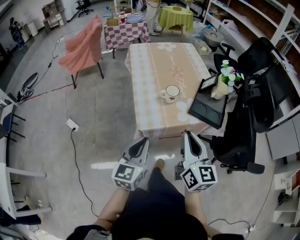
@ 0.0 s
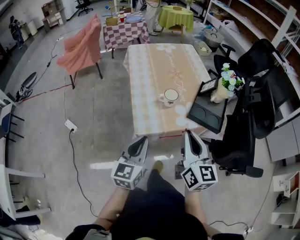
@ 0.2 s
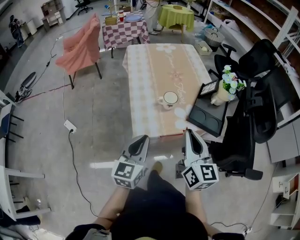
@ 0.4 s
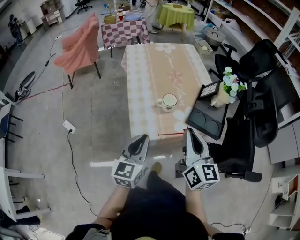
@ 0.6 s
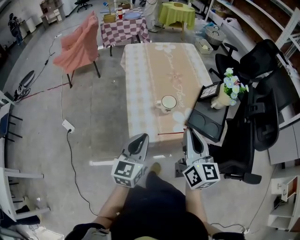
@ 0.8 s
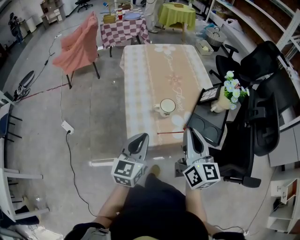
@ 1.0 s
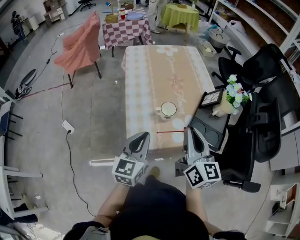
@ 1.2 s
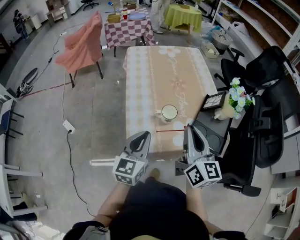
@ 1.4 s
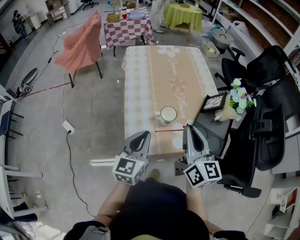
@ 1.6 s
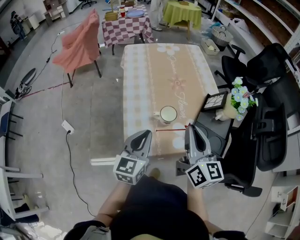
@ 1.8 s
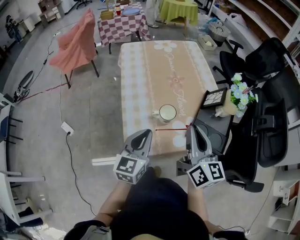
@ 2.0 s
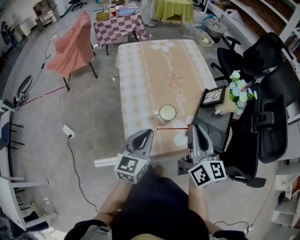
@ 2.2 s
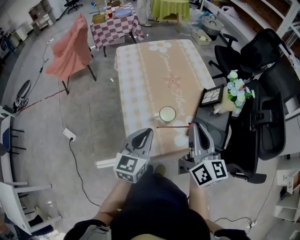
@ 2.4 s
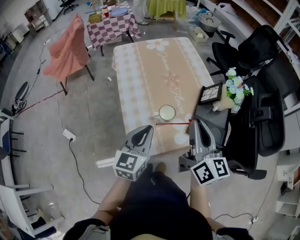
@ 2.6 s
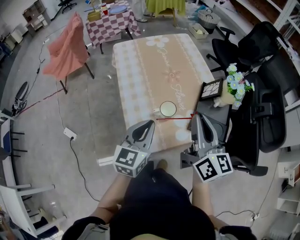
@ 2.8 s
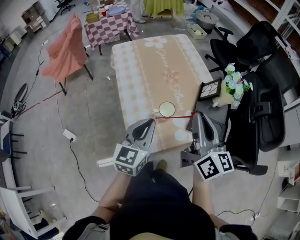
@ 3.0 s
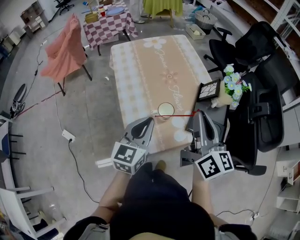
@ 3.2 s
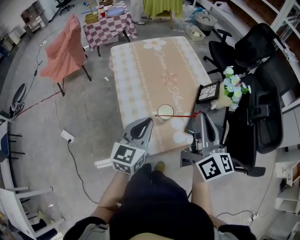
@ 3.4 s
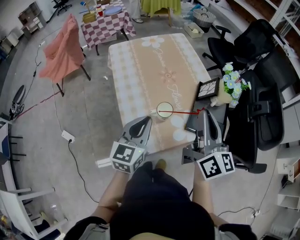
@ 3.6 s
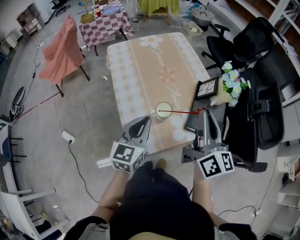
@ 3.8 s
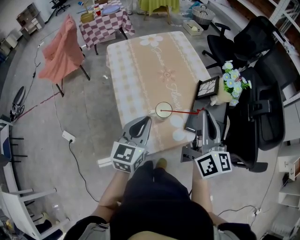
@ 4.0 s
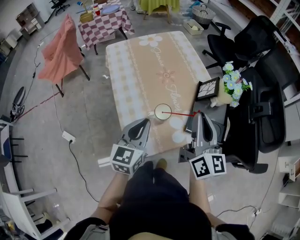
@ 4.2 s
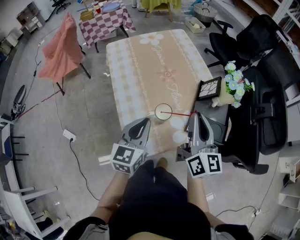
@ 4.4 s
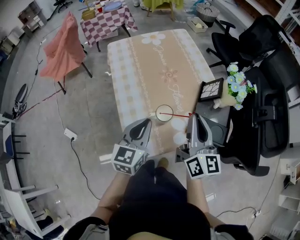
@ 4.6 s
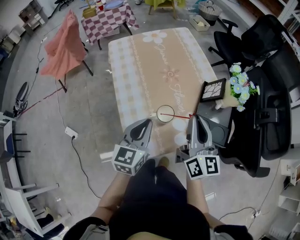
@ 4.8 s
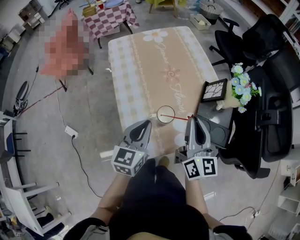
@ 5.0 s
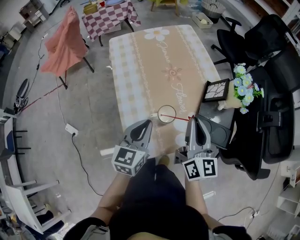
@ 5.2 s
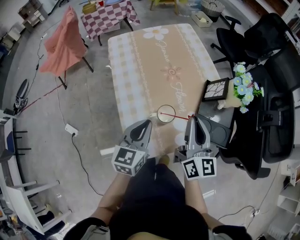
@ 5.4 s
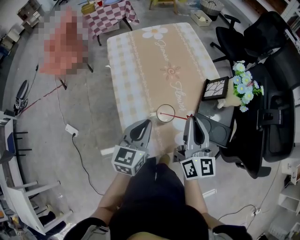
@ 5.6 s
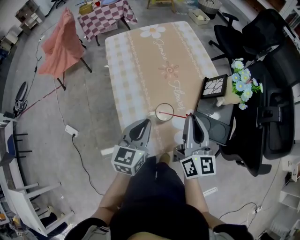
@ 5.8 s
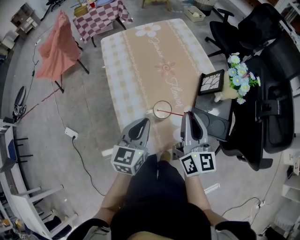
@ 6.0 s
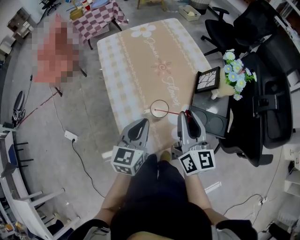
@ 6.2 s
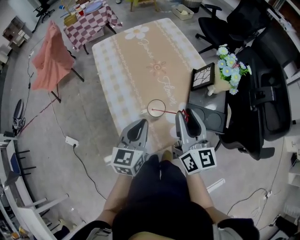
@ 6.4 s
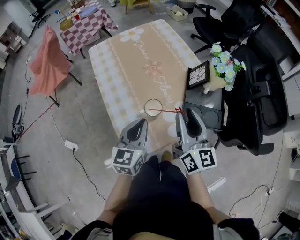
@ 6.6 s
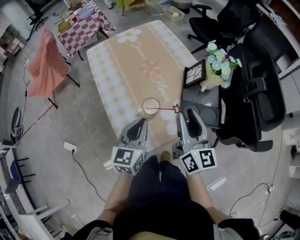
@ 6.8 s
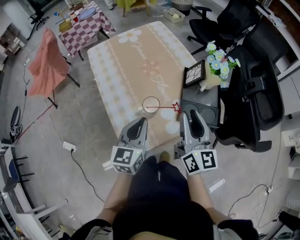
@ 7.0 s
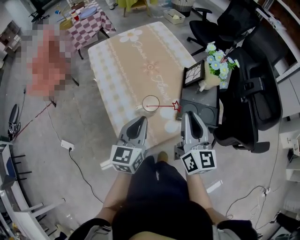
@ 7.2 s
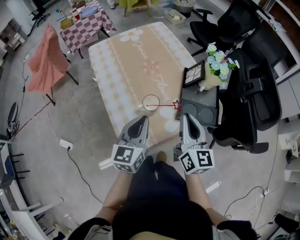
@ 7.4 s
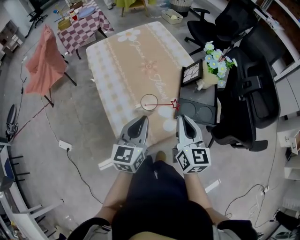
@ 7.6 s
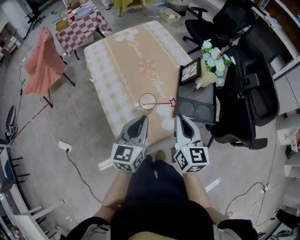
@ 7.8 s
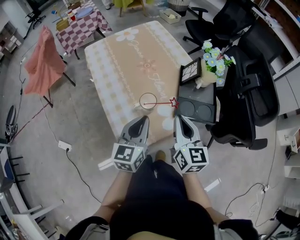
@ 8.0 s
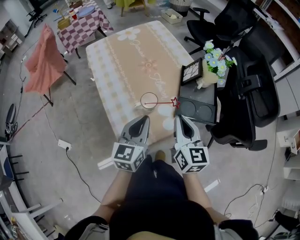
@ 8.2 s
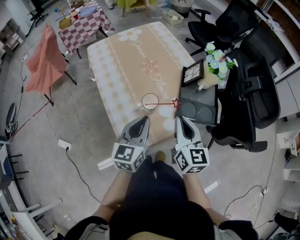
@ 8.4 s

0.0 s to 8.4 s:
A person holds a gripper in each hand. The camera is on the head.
0.0 to 1.4 s: Both grippers travel together forward, about 15 cm.
1.4 to 2.8 s: The right gripper moves about 5 cm, while the left gripper is displaced forward by some 5 cm.
2.8 to 4.2 s: There are only small adjustments of the grippers.
4.2 to 5.6 s: The right gripper shifts about 5 cm downward.
5.6 to 7.0 s: The right gripper moves about 5 cm, and opens.
7.0 to 8.4 s: The right gripper changes place by about 5 cm, and closes up.

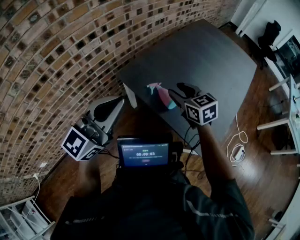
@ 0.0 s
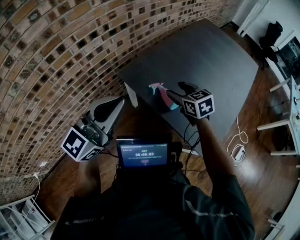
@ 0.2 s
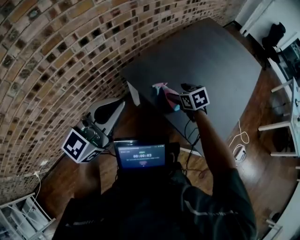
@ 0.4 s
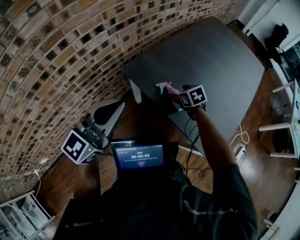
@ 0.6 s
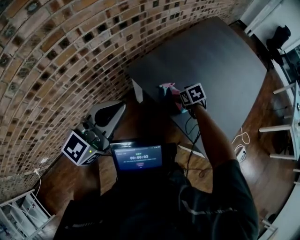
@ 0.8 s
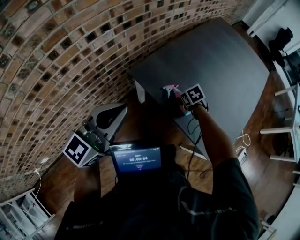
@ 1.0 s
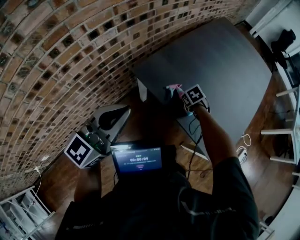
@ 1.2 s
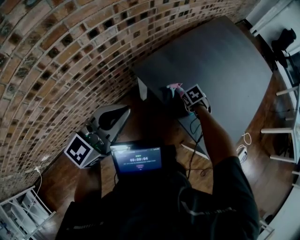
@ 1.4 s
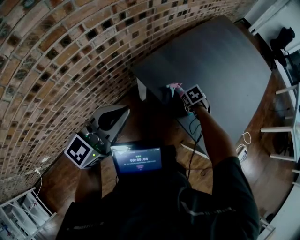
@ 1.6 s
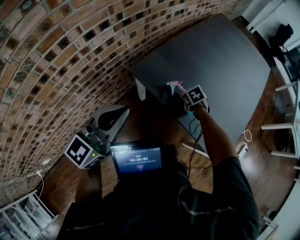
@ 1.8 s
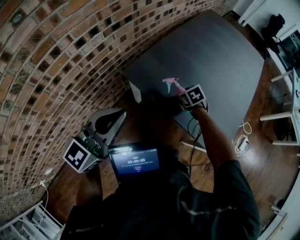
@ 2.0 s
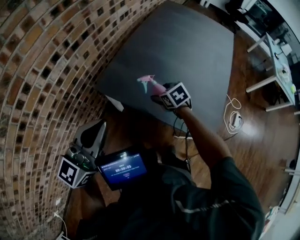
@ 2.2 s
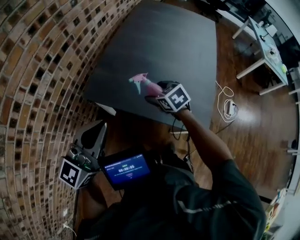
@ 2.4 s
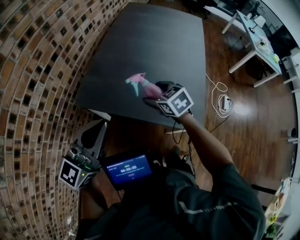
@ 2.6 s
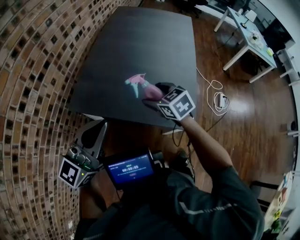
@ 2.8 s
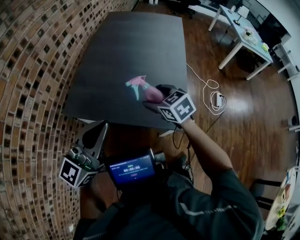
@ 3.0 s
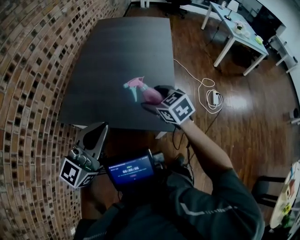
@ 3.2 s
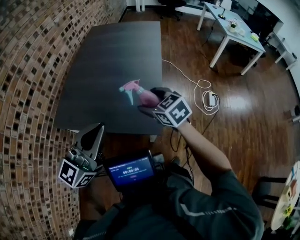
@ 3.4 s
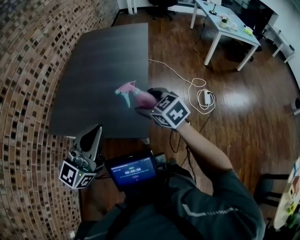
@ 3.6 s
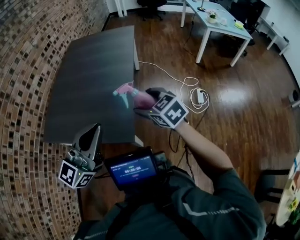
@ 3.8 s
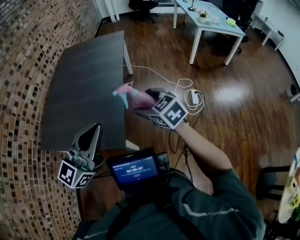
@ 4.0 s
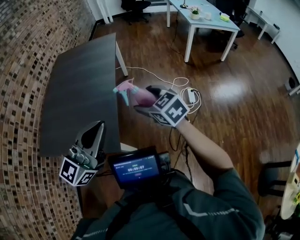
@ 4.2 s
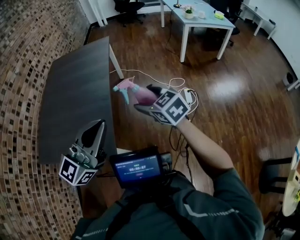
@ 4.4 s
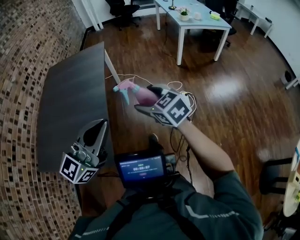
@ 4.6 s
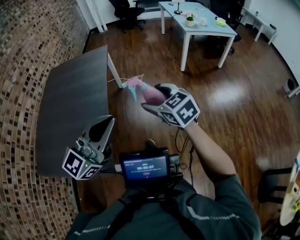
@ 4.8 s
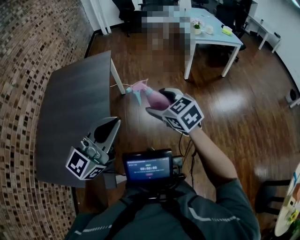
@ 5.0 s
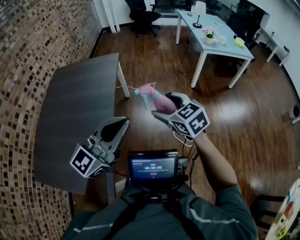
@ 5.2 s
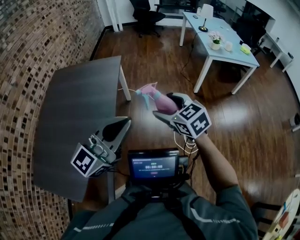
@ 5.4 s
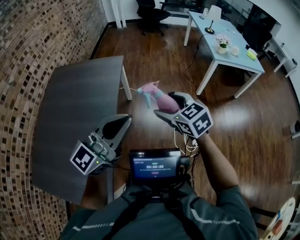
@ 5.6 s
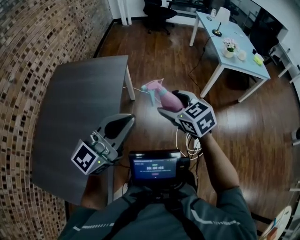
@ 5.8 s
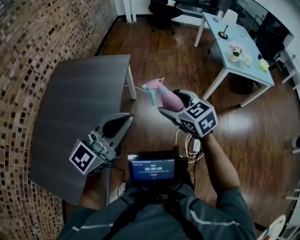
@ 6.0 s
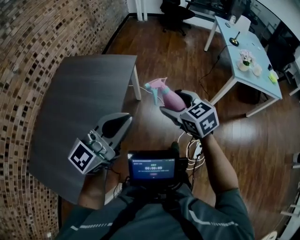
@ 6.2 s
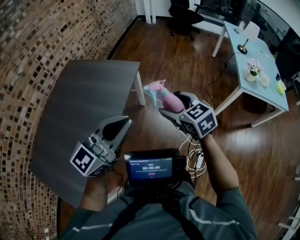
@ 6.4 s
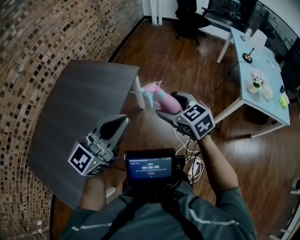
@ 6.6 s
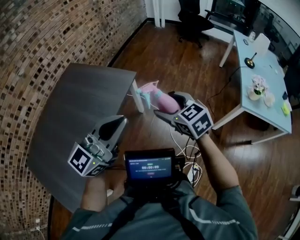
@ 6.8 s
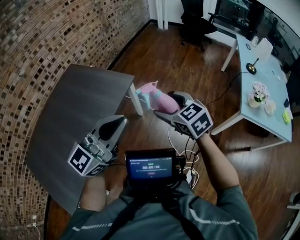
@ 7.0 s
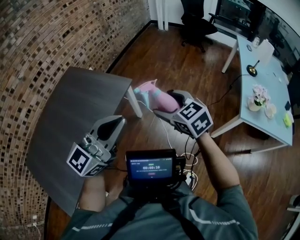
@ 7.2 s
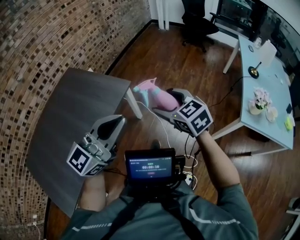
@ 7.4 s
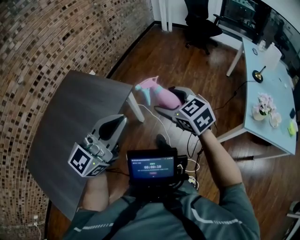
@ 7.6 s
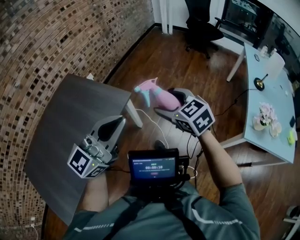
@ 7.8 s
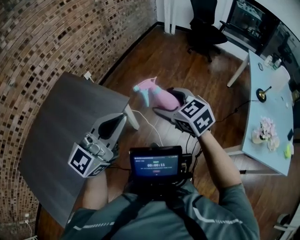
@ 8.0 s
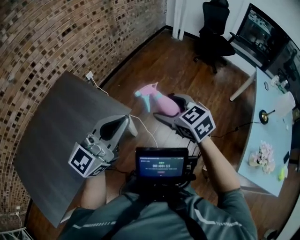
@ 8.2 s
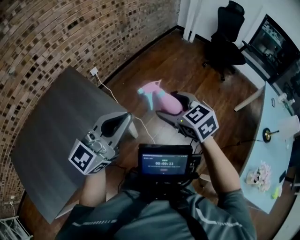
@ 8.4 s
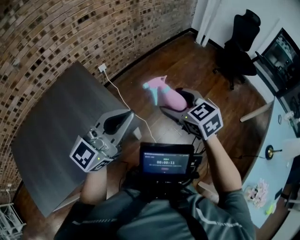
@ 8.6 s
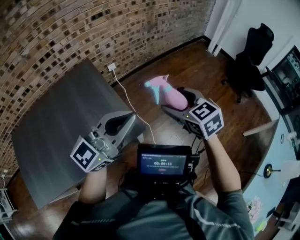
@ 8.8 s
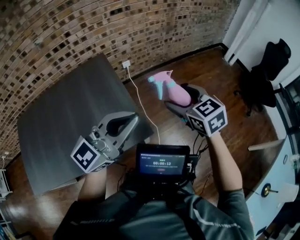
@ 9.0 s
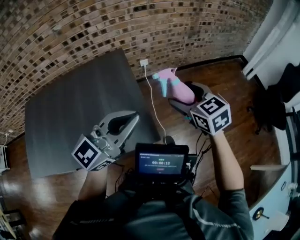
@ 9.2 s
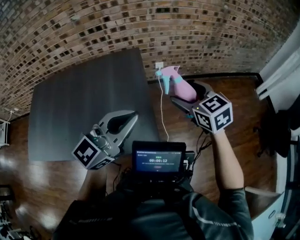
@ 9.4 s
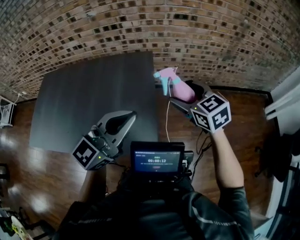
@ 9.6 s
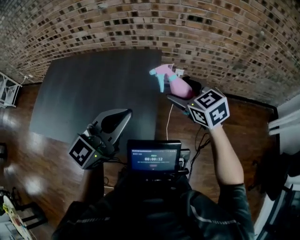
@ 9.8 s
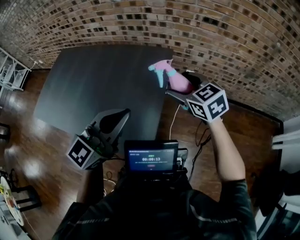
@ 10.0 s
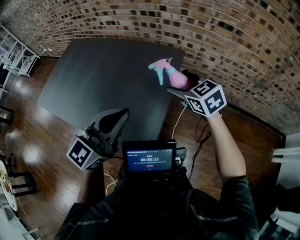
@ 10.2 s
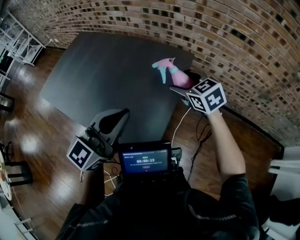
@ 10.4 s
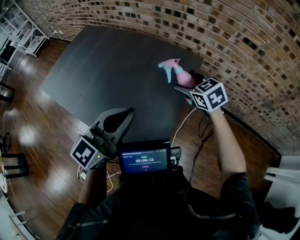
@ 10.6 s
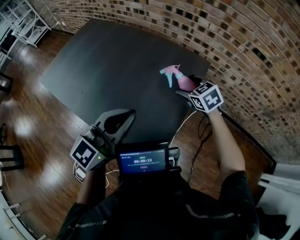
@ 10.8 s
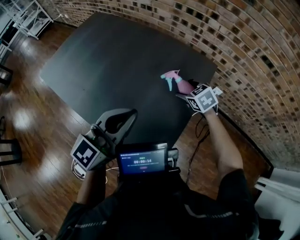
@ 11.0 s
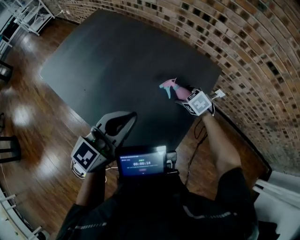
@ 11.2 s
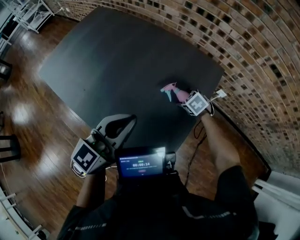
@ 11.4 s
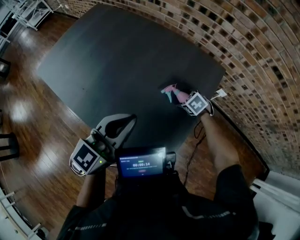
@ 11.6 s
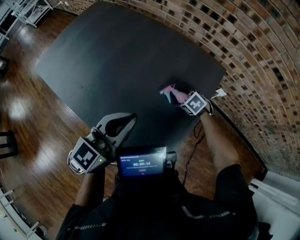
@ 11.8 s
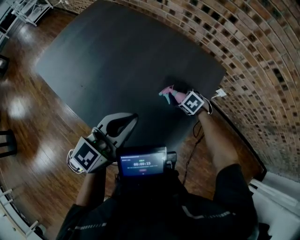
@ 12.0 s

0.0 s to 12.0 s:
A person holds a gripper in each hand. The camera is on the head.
0.0 to 1.6 s: The right gripper shifts approximately 25 cm downward, angles its fingers downward, by about 50 degrees, and opens its fingers; the left gripper shifts by roughly 10 cm.
1.6 to 3.0 s: The left gripper changes place by approximately 25 cm, and swivels roughly 30 degrees; the right gripper heads upward, covering approximately 25 cm, and tips its fingers upward by roughly 40 degrees.
3.0 to 4.4 s: Both grippers are carried to the right, about 50 cm.
4.4 to 6.0 s: The two grippers travel together, forward, approximately 50 cm.
6.0 to 7.6 s: The grippers both shift forward and to the right by approximately 35 cm. The left gripper turns by about 20 degrees. The right gripper changes its angle by roughly 20 degrees.
7.6 to 9.0 s: The right gripper shifts by about 40 cm, and changes its angle by approximately 30 degrees. The left gripper moves roughly 40 cm, and rotates some 30 degrees.
9.0 to 10.4 s: The left gripper moves approximately 20 cm, and rotates roughly 60 degrees. The right gripper changes place by approximately 35 cm, and swivels some 60 degrees.
10.4 to 12.0 s: The left gripper ends up about 20 cm from where it was; the right gripper moves downward, roughly 30 cm, and tips its fingers downward by some 40 degrees.

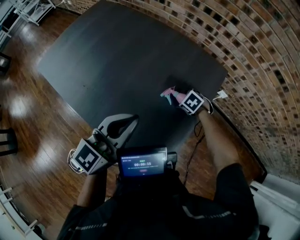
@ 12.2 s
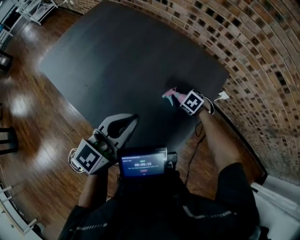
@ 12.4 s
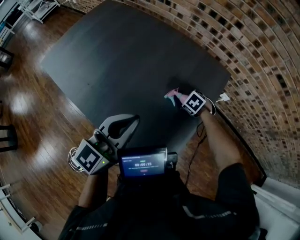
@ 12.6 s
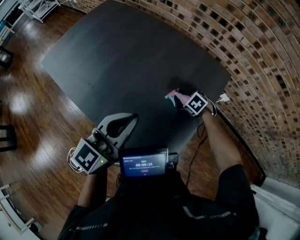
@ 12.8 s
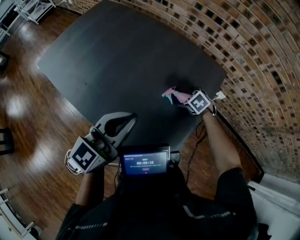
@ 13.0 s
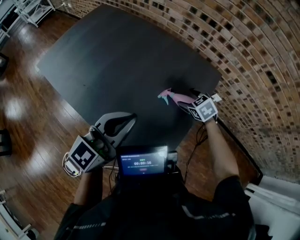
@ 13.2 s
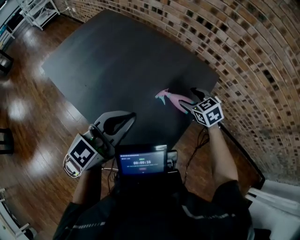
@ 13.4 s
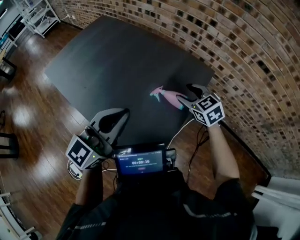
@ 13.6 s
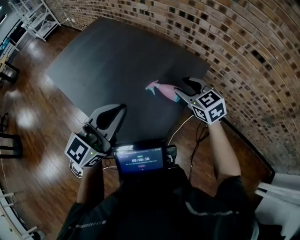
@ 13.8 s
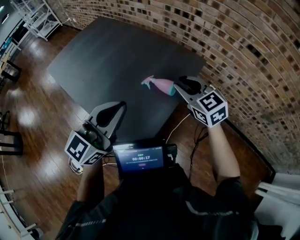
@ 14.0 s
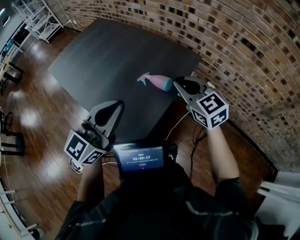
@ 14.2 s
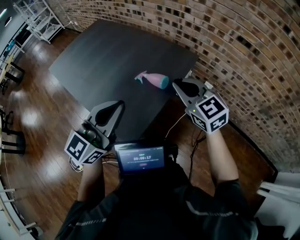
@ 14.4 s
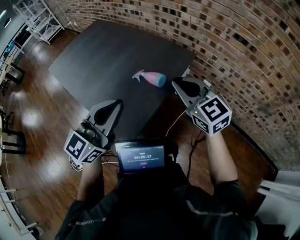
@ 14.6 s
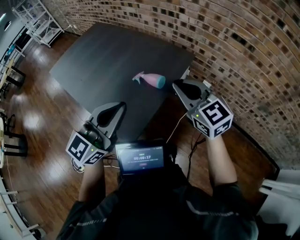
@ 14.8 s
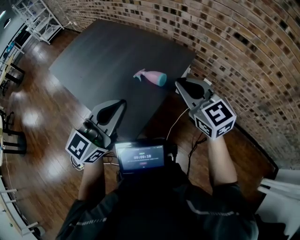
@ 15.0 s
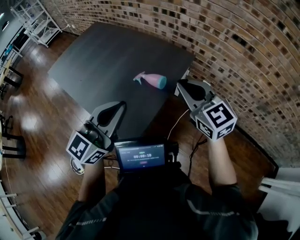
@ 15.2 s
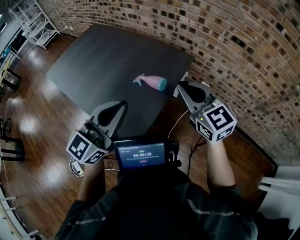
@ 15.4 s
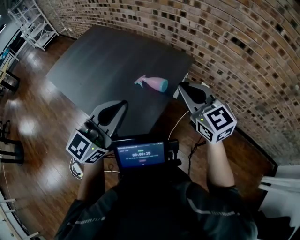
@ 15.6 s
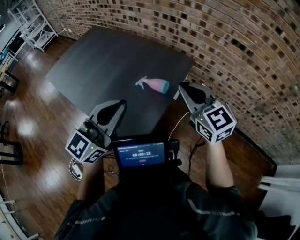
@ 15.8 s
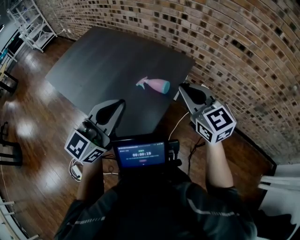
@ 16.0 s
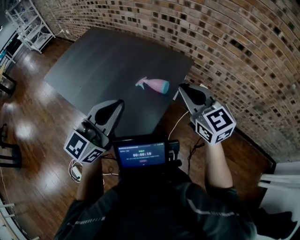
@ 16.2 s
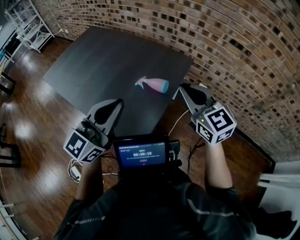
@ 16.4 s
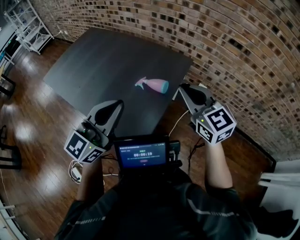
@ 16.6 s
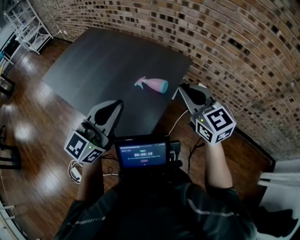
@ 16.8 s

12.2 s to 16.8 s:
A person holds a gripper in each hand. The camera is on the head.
12.2 to 13.8 s: The right gripper travels upward by roughly 30 cm, angles its fingers upward, by roughly 50 degrees, and closes up, while the left gripper ends up about 15 cm from where it was.
13.8 to 15.2 s: The left gripper is displaced to the right and backward by about 15 cm. Meanwhile the right gripper travels backward, upward and to the right by approximately 20 cm, and closes its fingers.
15.2 to 16.8 s: The left gripper goes some 5 cm to the left.
